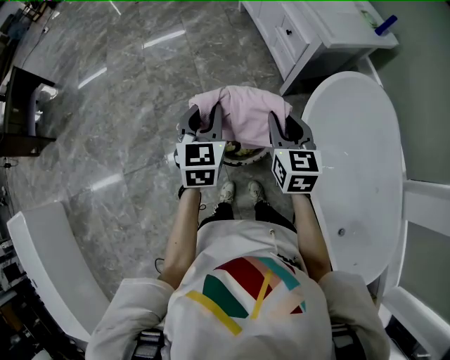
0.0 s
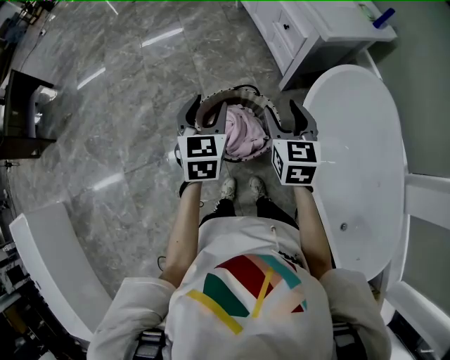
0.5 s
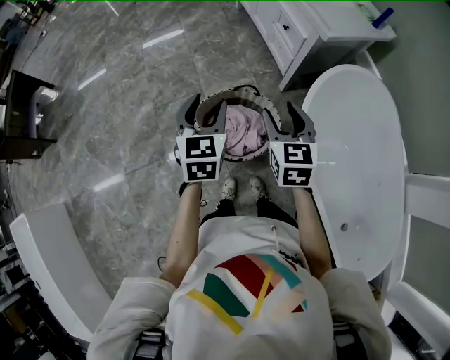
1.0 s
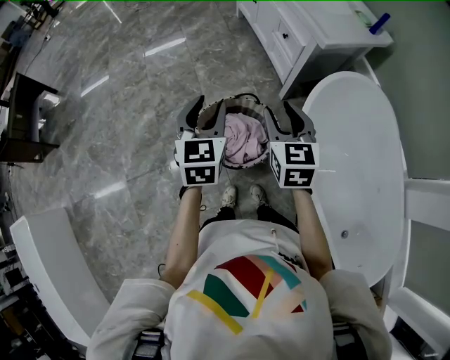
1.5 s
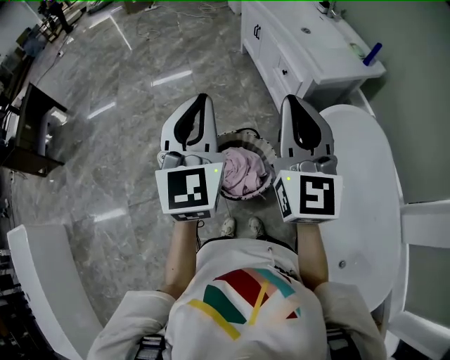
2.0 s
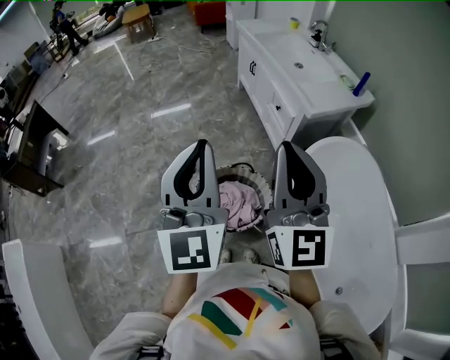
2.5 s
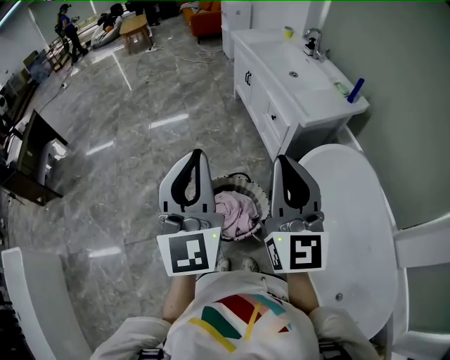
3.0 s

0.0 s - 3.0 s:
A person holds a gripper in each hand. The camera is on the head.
0.0 s - 1.5 s: The grippers make only small movements.
1.5 s - 3.0 s: The grippers both shift upward by some 25 cm. The right gripper tips its fingers upward by about 30 degrees, and closes up; the left gripper tilts its fingers about 30 degrees upward, and closes.

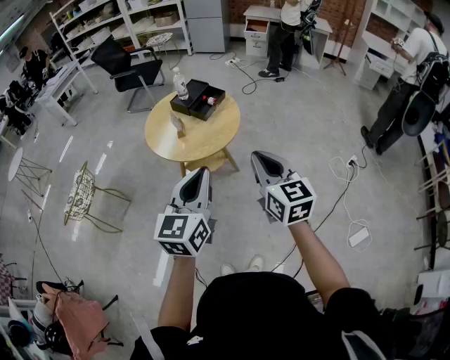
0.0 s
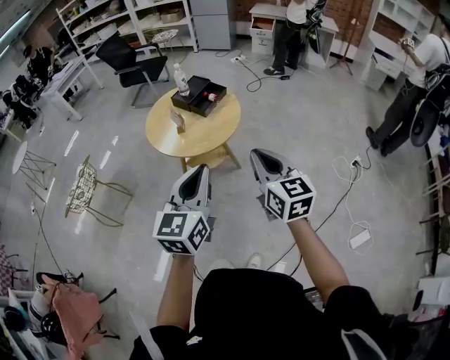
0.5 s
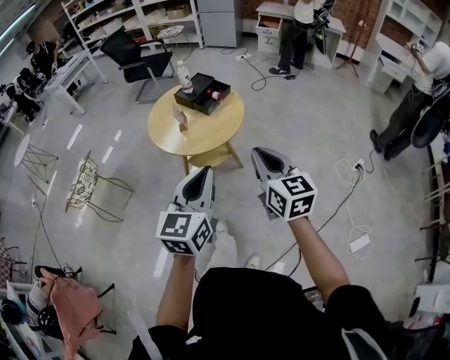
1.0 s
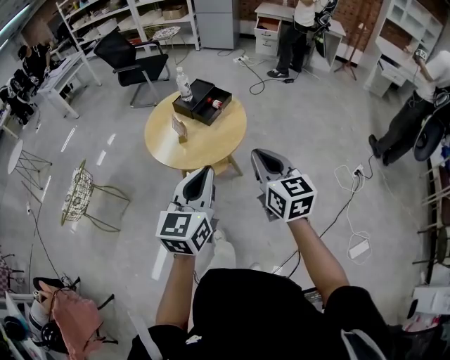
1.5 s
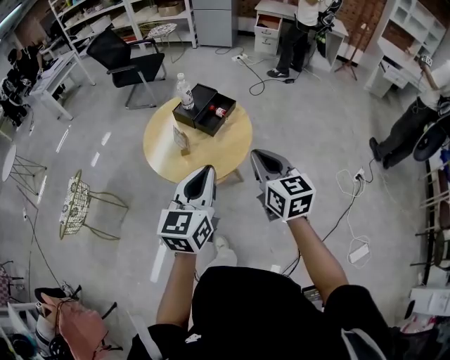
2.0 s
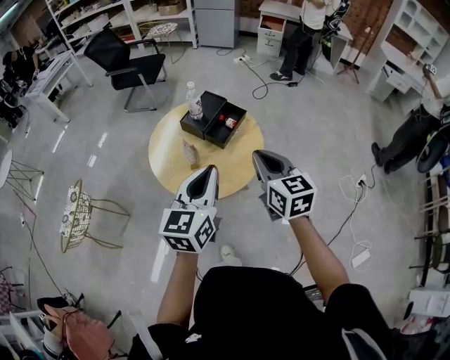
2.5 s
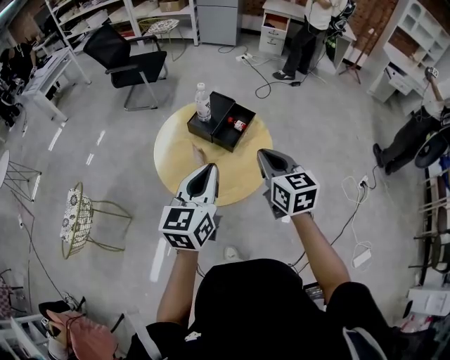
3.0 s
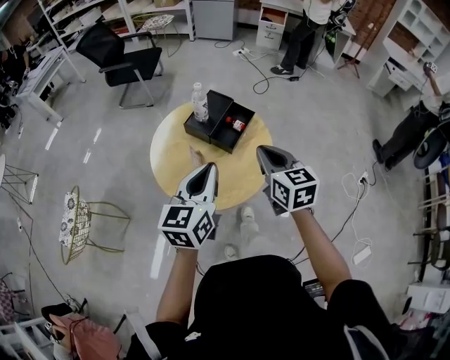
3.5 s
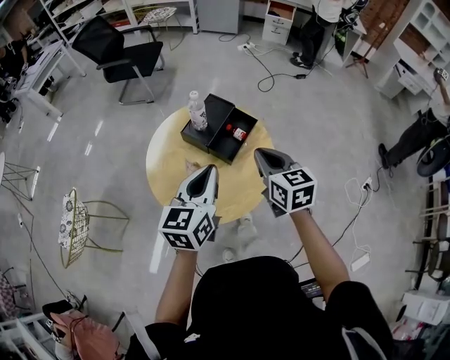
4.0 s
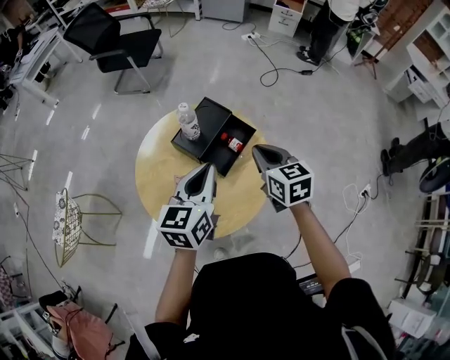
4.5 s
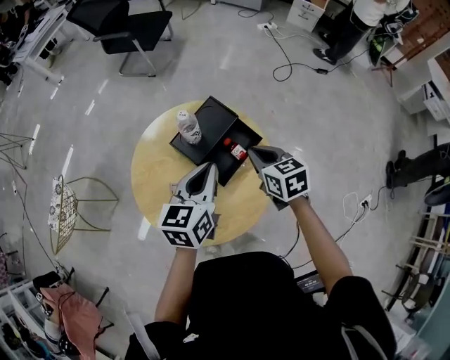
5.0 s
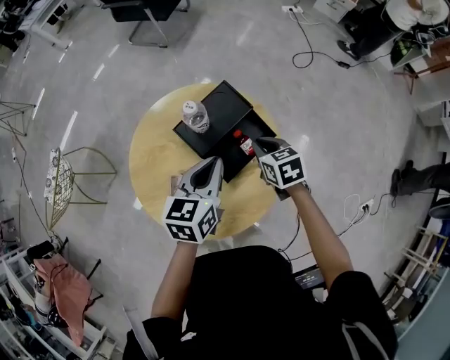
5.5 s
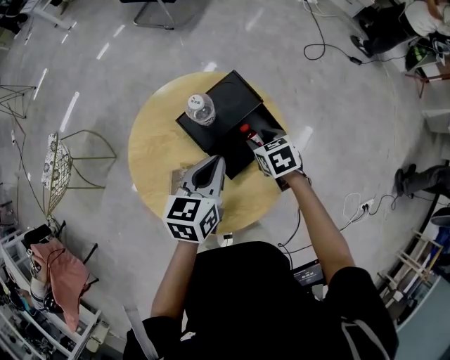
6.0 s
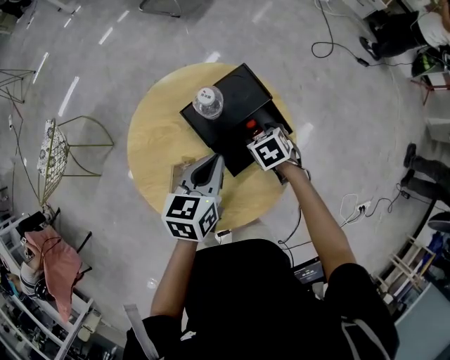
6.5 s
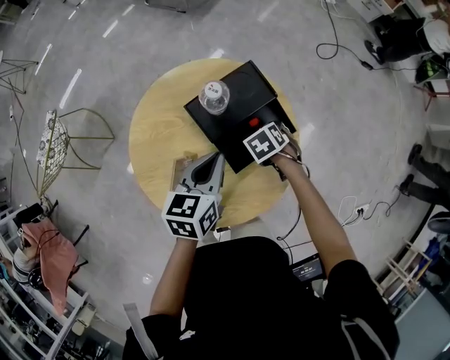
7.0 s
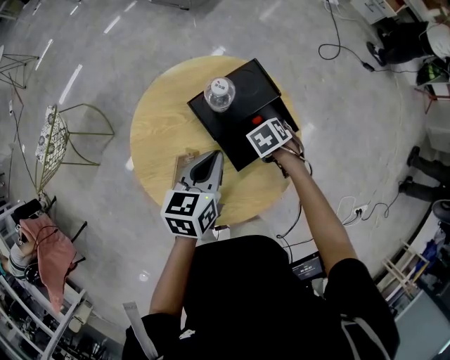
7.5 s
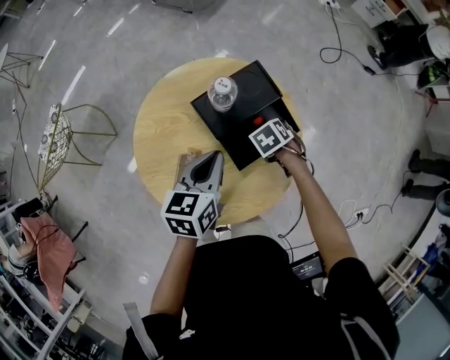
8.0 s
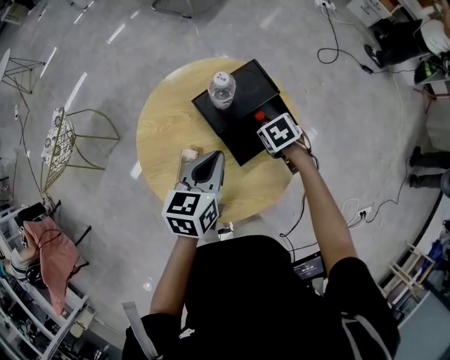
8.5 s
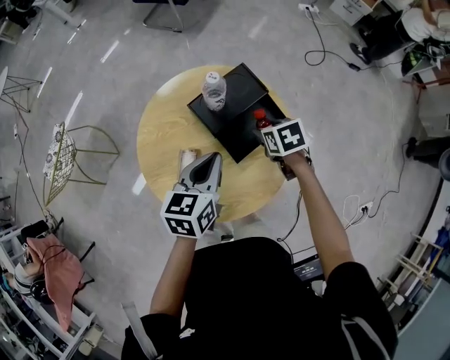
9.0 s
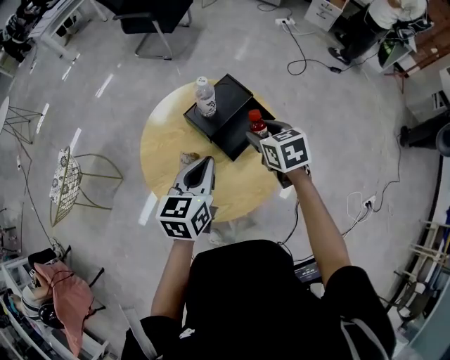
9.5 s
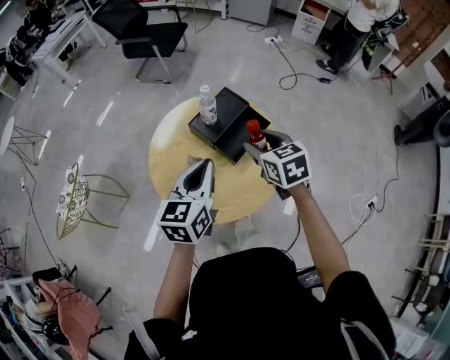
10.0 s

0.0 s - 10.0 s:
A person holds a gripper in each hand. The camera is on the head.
0.0 s - 2.0 s: The grippers both shift forward by approximately 20 cm.
2.0 s - 4.0 s: The two grippers go some 25 cm forward.
4.0 s - 6.0 s: The left gripper is displaced forward and downward by approximately 25 cm, and turns by approximately 30 degrees, while the right gripper is displaced downward and forward by roughly 35 cm, tips its fingers downward by roughly 40 degrees, and opens.
6.0 s - 8.0 s: The right gripper moves downward, some 5 cm, and changes its angle by some 30 degrees; the left gripper changes place by roughly 5 cm.
8.0 s - 10.0 s: The left gripper travels upward by some 15 cm, and changes its angle by roughly 20 degrees; the right gripper is displaced upward by some 30 cm, and tilts its fingers about 50 degrees upward.

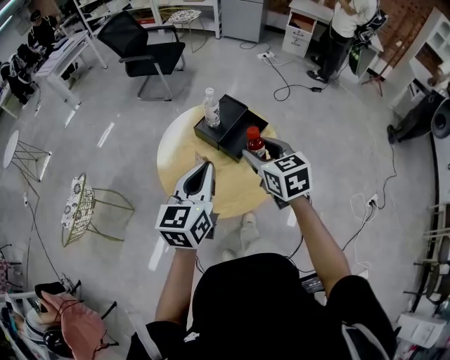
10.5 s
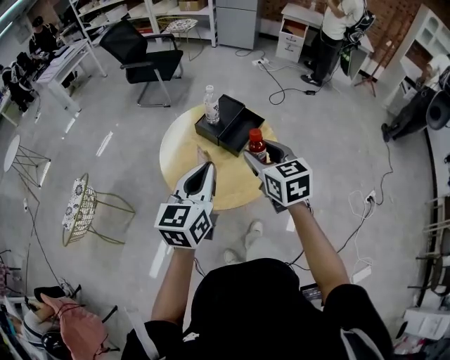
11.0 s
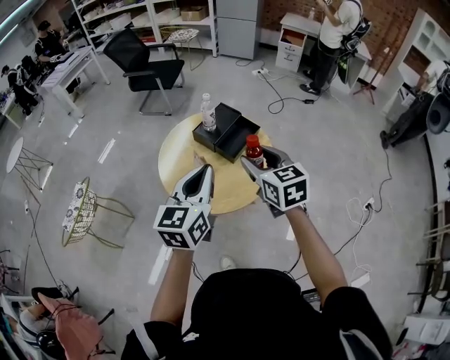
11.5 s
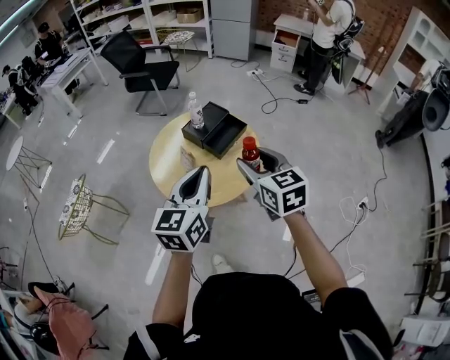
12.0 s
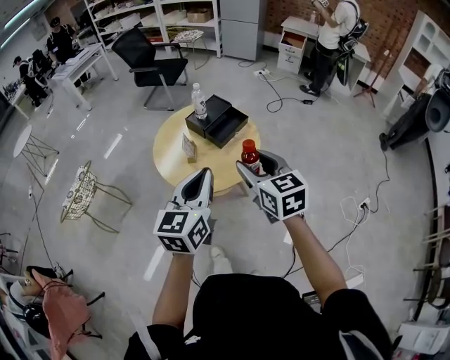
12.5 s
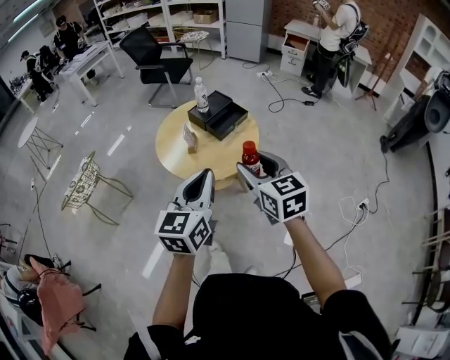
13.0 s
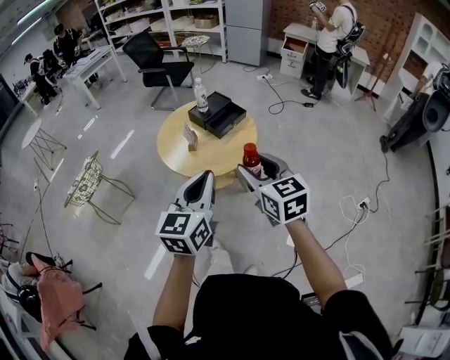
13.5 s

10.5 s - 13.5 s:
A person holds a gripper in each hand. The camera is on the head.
10.5 s - 12.0 s: The left gripper goes approximately 15 cm backward, to the right and upward. Meanwhile the right gripper is displaced backward, upward and to the right by approximately 15 cm.
12.0 s - 13.5 s: The grippers both shift backward by about 20 cm.

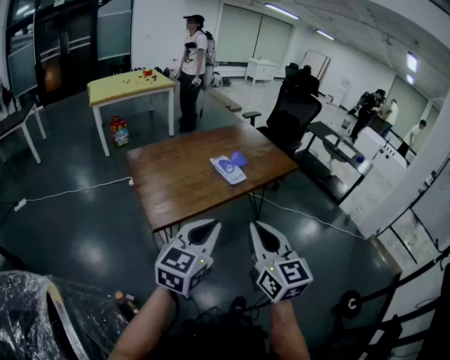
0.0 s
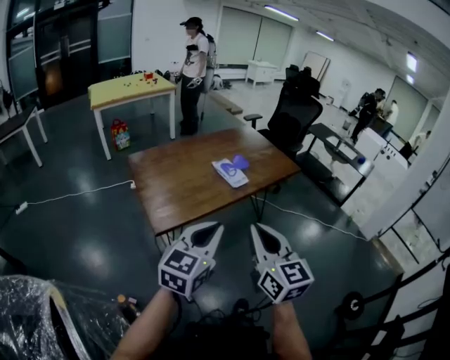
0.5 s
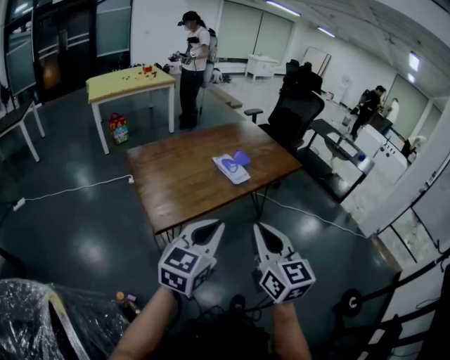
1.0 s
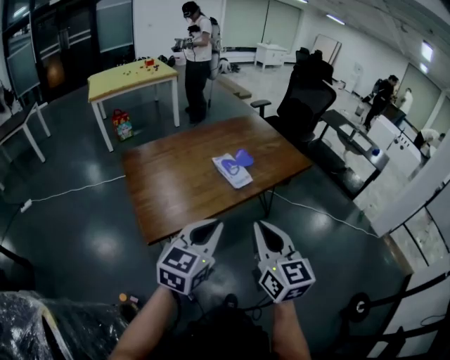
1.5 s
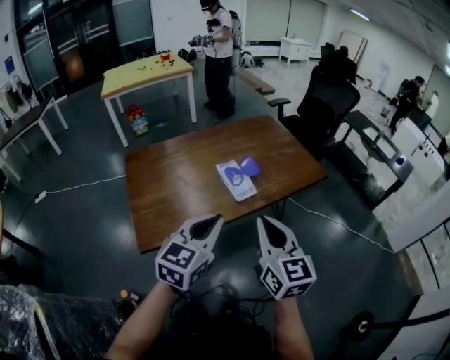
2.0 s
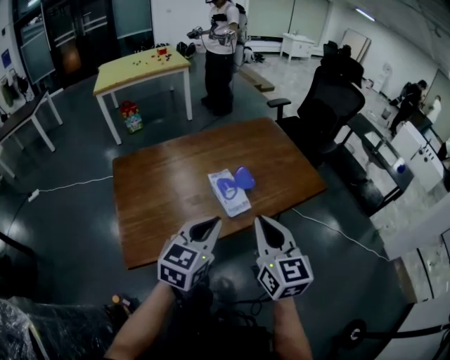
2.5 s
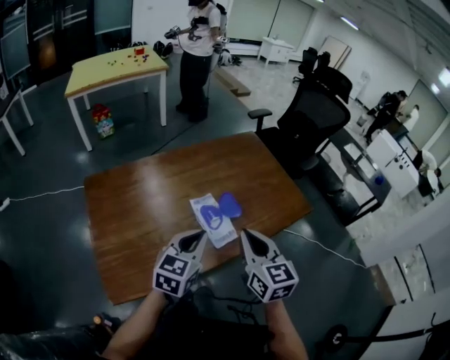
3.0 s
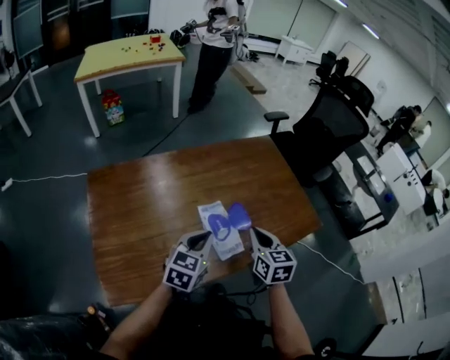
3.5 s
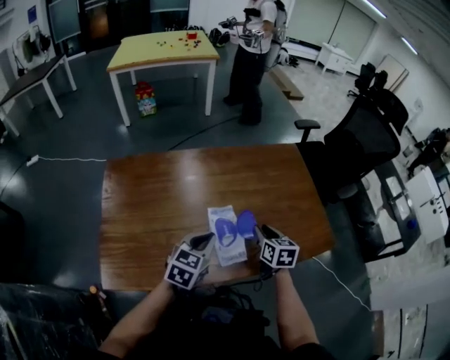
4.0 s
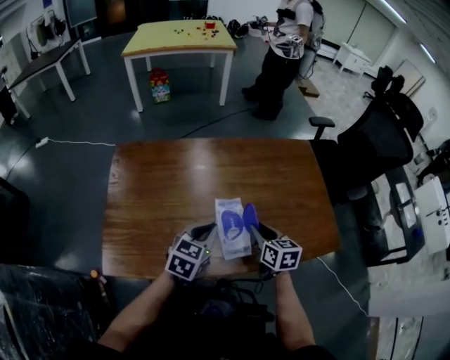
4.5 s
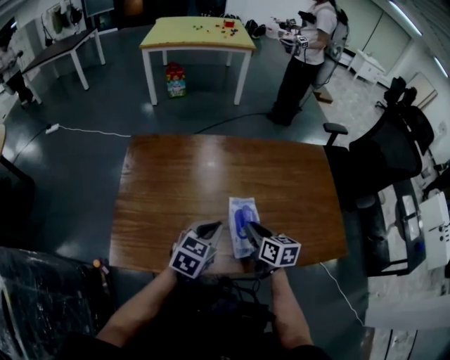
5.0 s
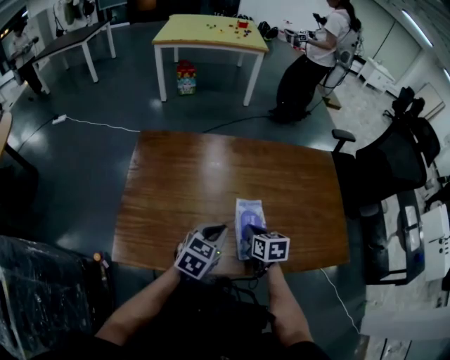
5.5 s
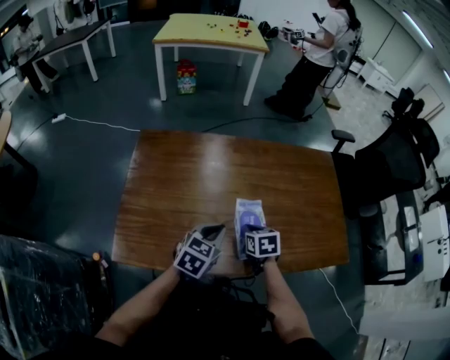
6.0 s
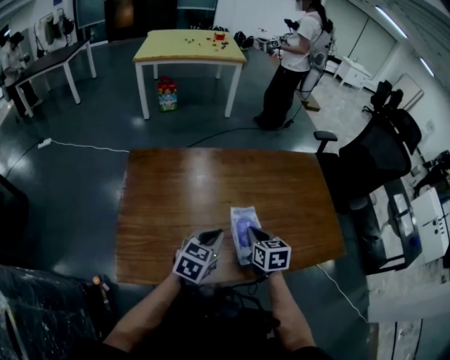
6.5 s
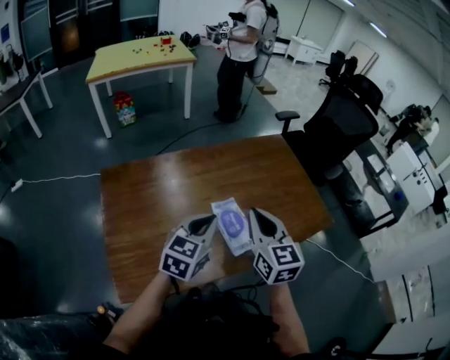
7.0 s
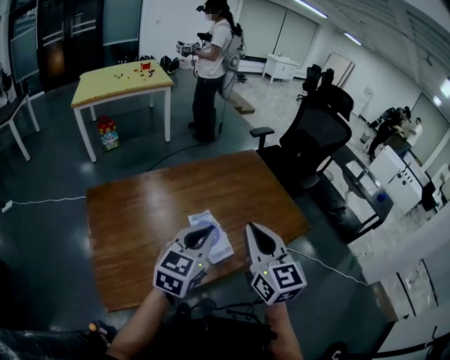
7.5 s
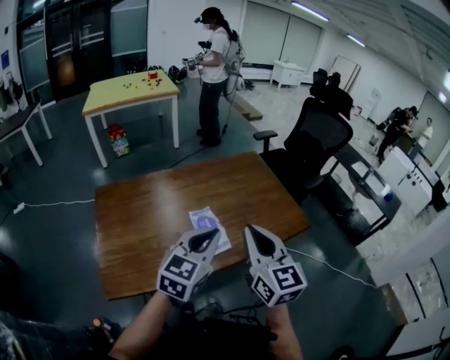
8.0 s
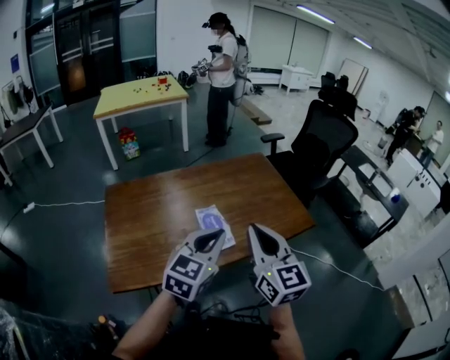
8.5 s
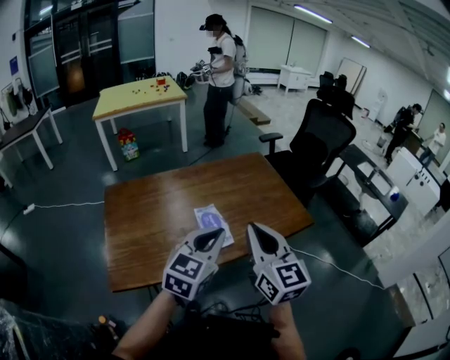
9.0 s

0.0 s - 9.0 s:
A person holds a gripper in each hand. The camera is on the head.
0.0 s - 2.0 s: Both grippers travel together forward, about 20 cm.
2.0 s - 4.5 s: Both grippers move forward and downward, about 35 cm. The left gripper changes its angle by approximately 20 degrees. Meanwhile the right gripper rotates approximately 40 degrees, and opens its fingers.
4.5 s - 7.0 s: The left gripper heads upward, covering roughly 10 cm; the right gripper heads upward and to the left, covering roughly 20 cm, rotates some 30 degrees, and closes its fingers.
7.0 s - 9.0 s: The left gripper heads to the right, backward and upward, covering some 20 cm; the right gripper moves backward, to the right and upward, some 20 cm.

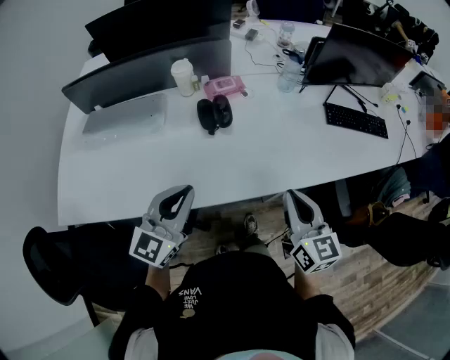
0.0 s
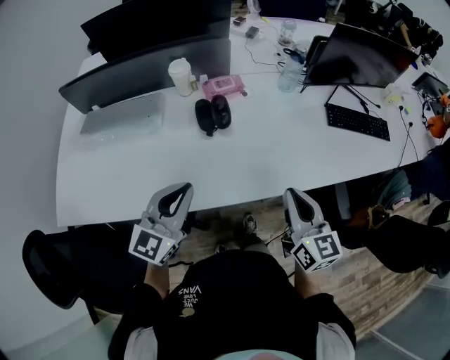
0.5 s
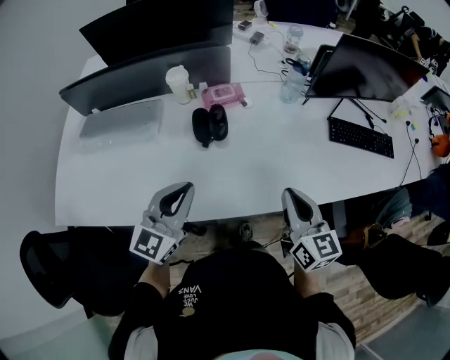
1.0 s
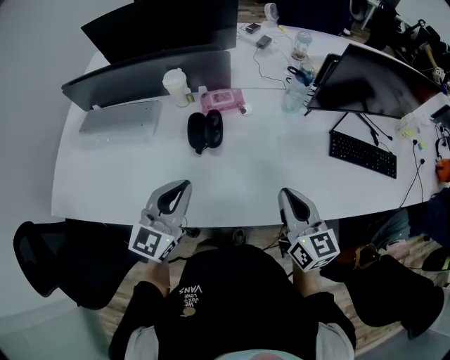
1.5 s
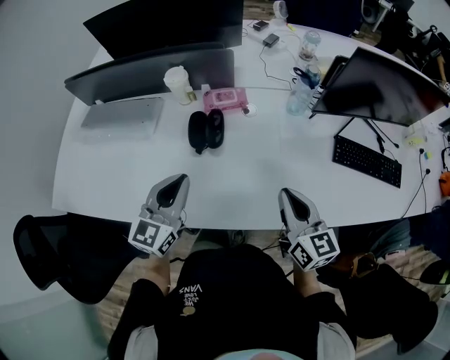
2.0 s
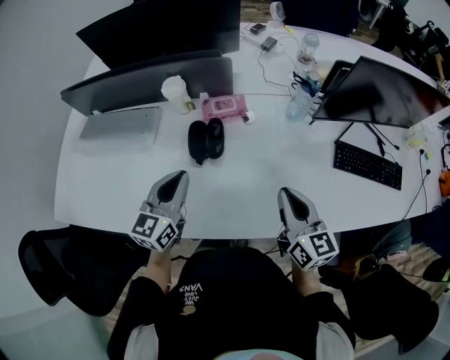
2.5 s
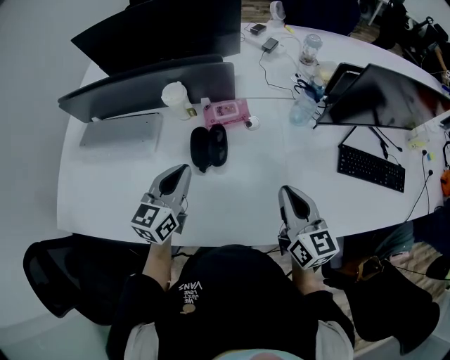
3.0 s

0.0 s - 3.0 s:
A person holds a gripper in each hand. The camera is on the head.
0.0 s - 1.5 s: Both grippers move forward and to the right, about 15 cm.
1.5 s - 3.0 s: The grippers both shift forward by some 10 cm.
